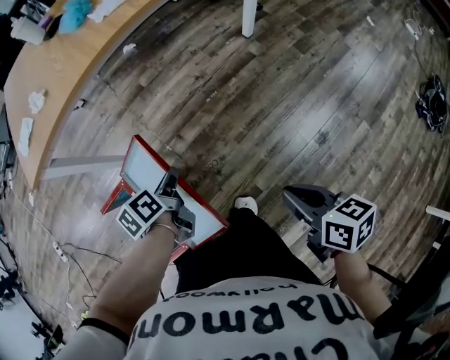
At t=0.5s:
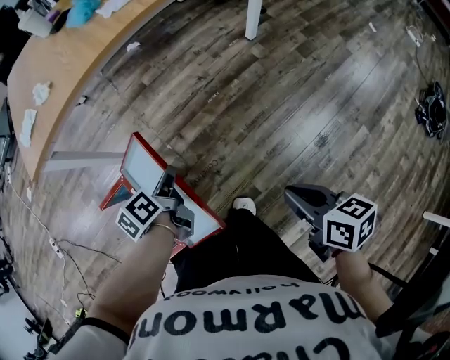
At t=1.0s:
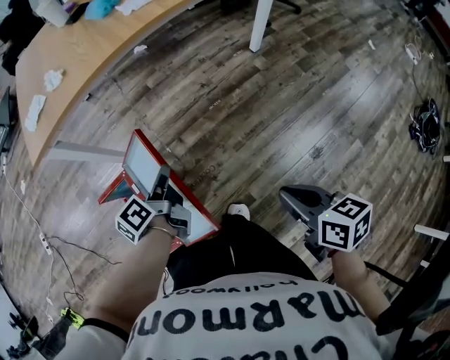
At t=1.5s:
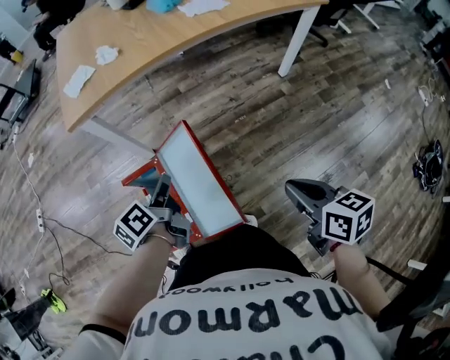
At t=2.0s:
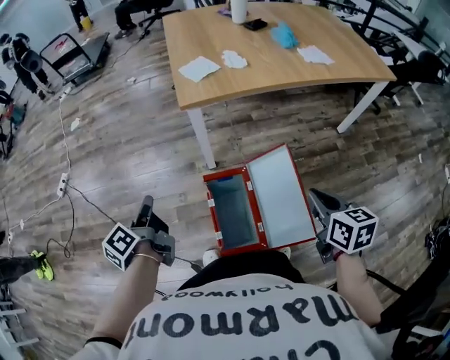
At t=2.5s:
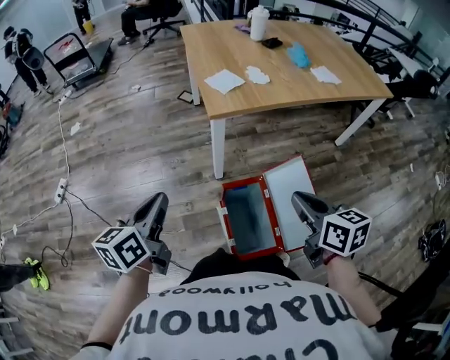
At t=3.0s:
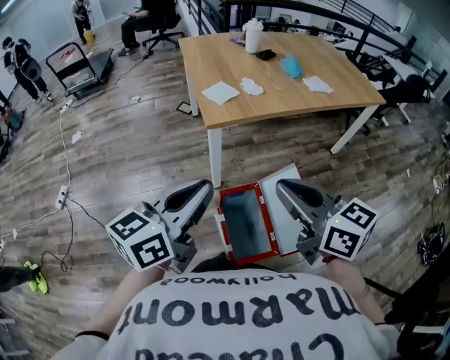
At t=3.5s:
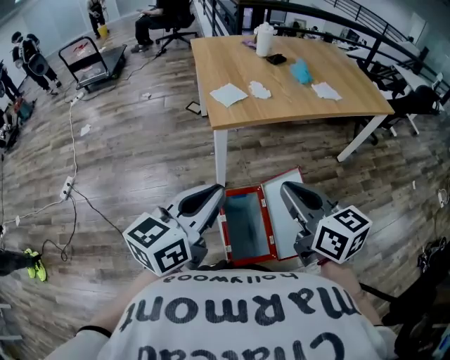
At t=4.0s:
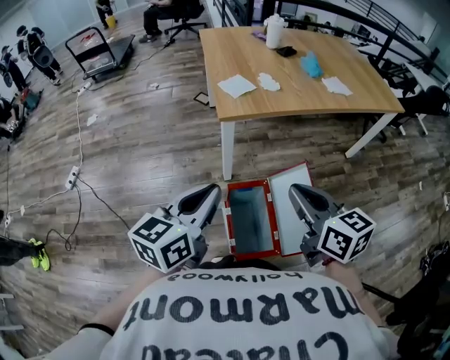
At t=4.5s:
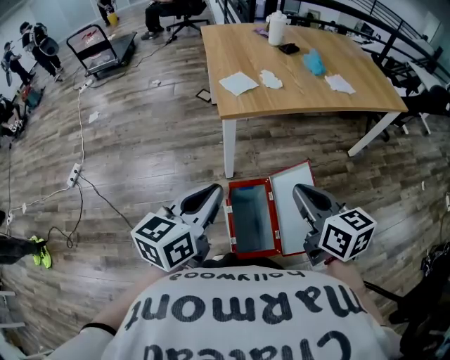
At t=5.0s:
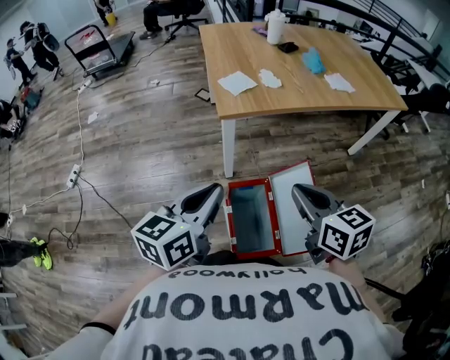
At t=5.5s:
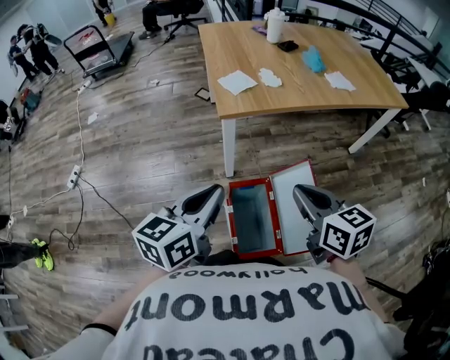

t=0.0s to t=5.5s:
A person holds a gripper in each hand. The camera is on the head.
t=0.0s to t=2.0s: The left gripper travels to the left by approximately 50 cm, and changes its angle by about 50 degrees, while the right gripper travels to the left by about 25 cm, and changes its angle by roughly 30 degrees.
t=2.0s to t=3.5s: The right gripper travels to the left and upward by some 25 cm, and changes its angle by about 20 degrees. The left gripper heads upward and to the right, covering roughly 25 cm, and changes its angle by some 70 degrees.
t=3.5s to t=5.5s: The grippers both shift downward by approximately 5 cm.

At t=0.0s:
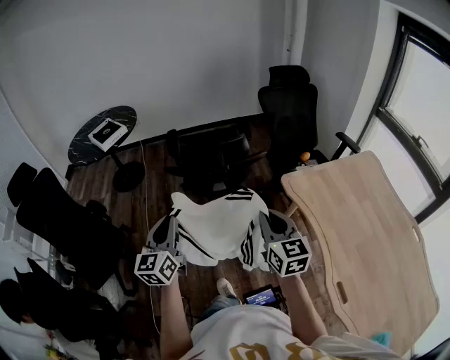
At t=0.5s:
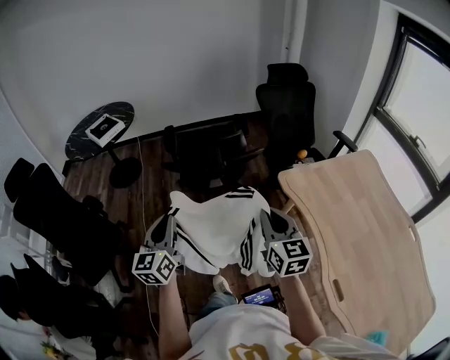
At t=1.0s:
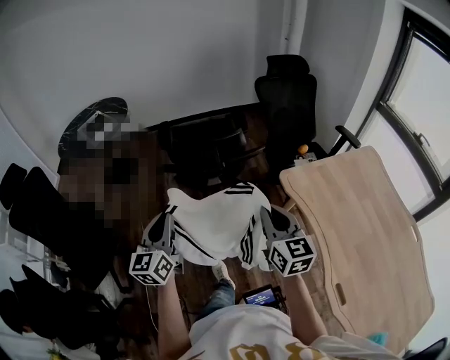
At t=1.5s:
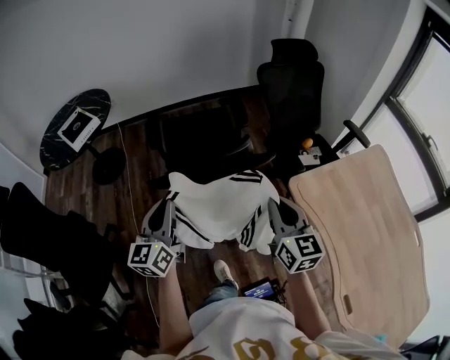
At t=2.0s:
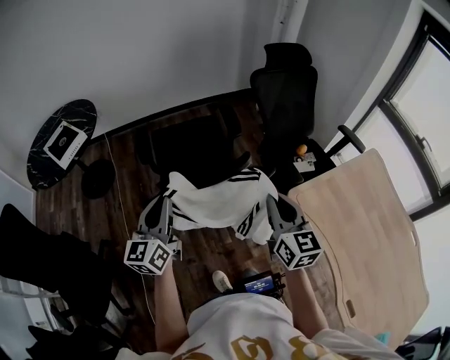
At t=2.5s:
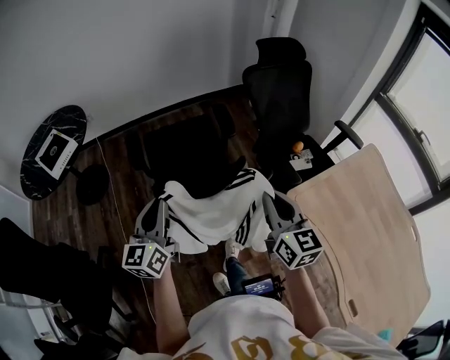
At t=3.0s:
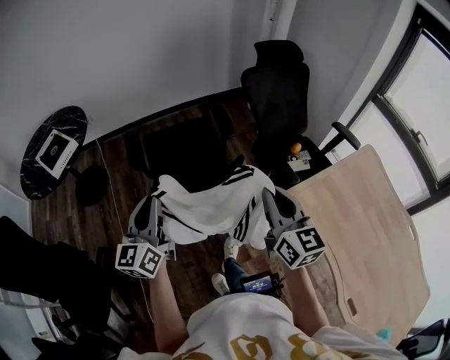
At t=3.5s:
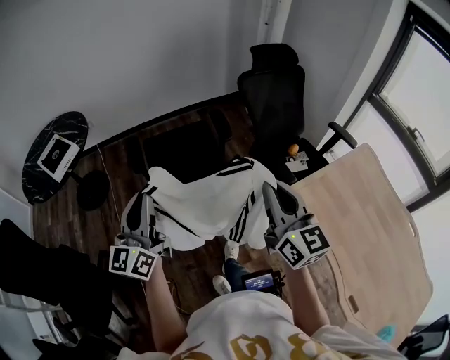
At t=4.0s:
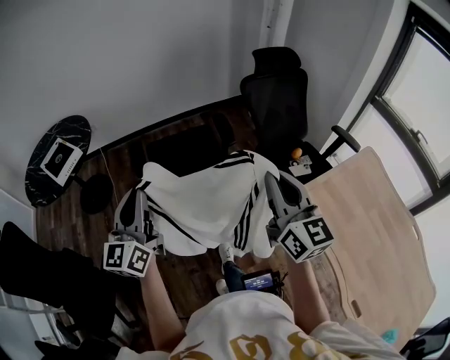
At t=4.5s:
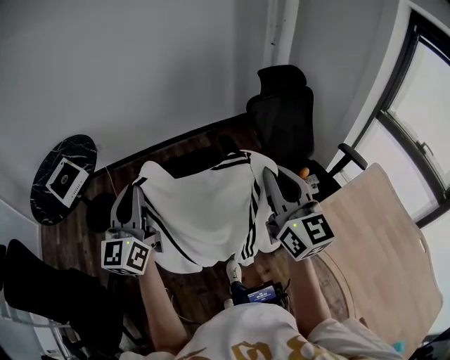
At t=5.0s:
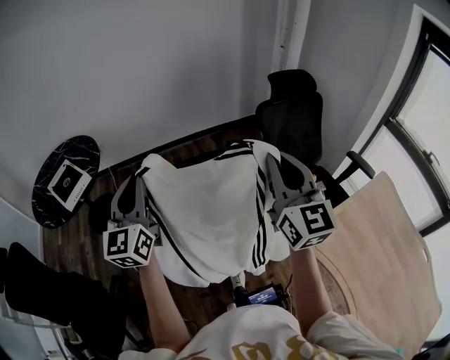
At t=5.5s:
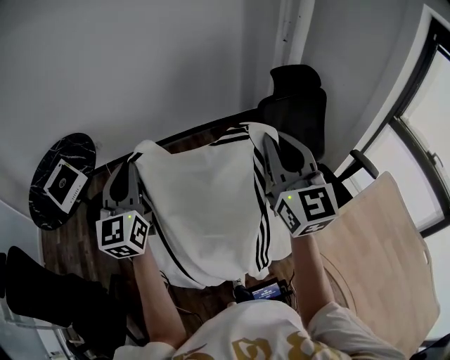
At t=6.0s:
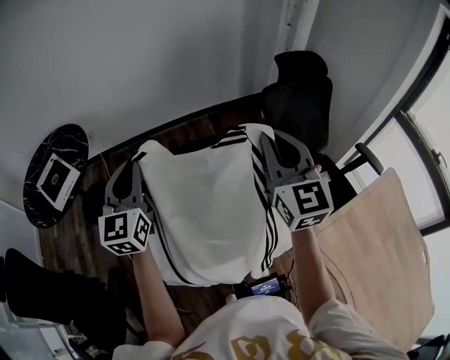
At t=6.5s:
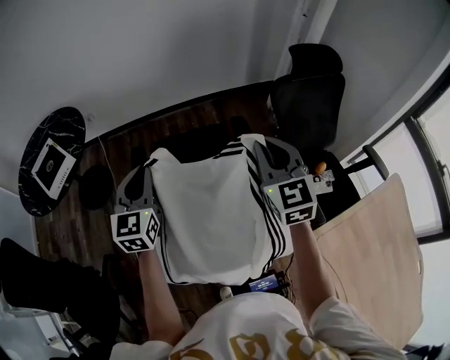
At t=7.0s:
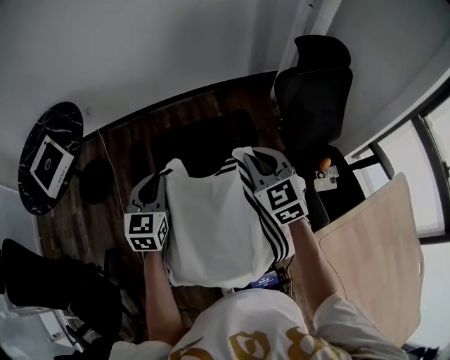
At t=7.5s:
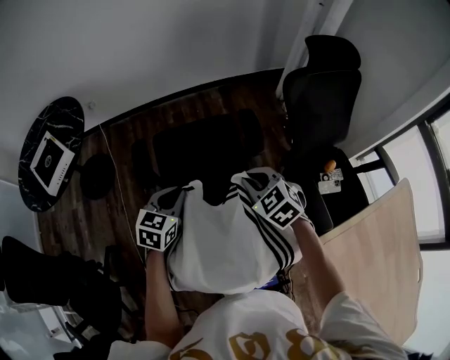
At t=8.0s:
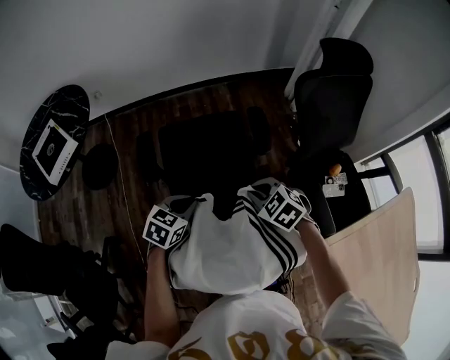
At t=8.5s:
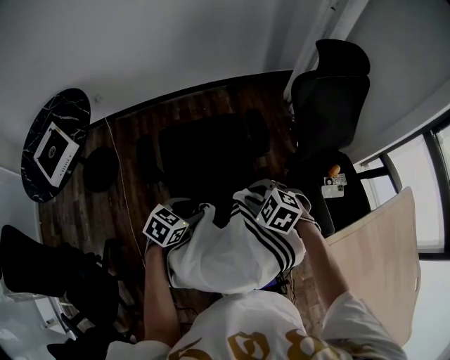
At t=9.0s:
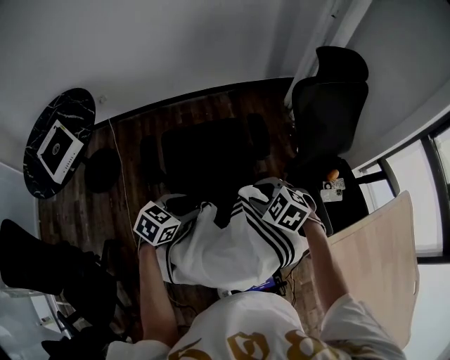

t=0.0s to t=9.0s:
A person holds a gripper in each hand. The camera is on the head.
t=0.0s to t=2.0s: The grippers both shift forward by approximately 30 cm.
t=2.0s to t=4.5s: Both grippers move upward and forward, roughly 20 cm. The right gripper turns by approximately 20 degrees.
t=4.5s to t=7.0s: The grippers both shift forward and downward by some 30 cm. The left gripper tips its fingers downward by approximately 30 degrees. Meanwhile the right gripper points its fingers roughly 30 degrees further downward.
t=7.0s to t=9.0s: Both grippers move downward and backward, roughly 15 cm. The right gripper tips its fingers downward by some 30 degrees, and opens its fingers, while the left gripper swivels about 40 degrees, and opens.

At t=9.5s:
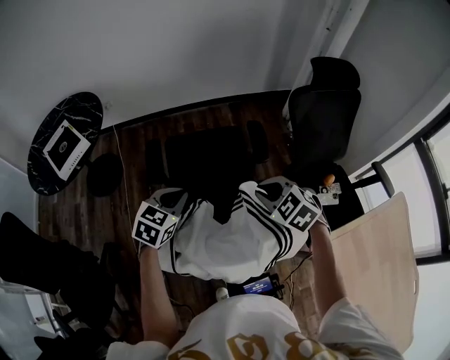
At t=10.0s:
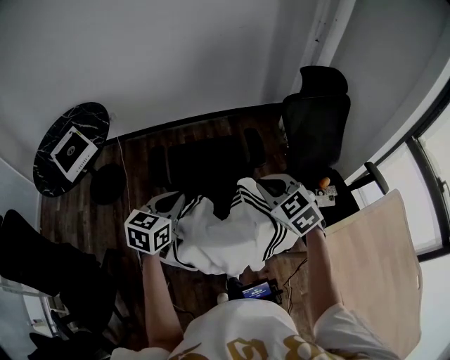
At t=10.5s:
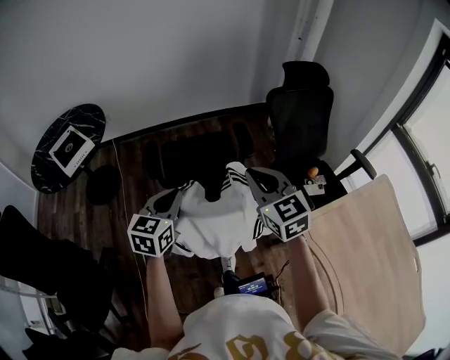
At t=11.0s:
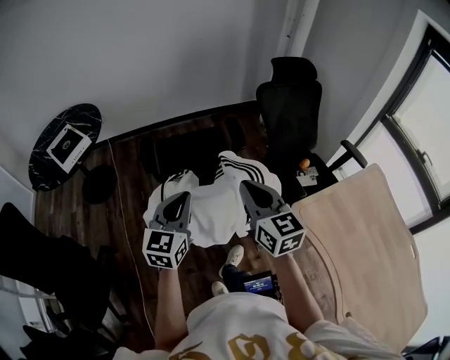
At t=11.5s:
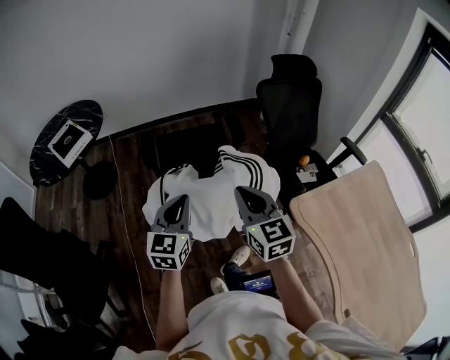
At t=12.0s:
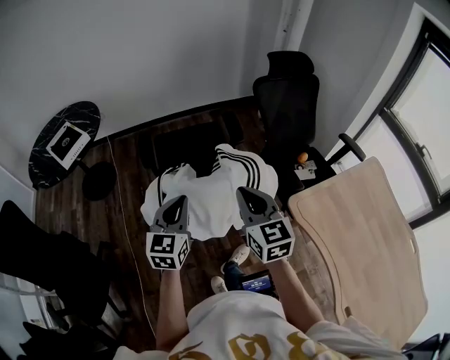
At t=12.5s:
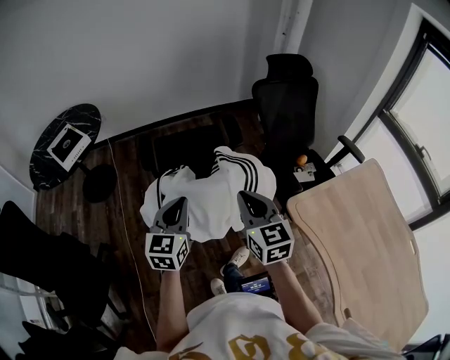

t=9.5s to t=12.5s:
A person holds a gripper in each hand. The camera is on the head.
t=9.5s to t=11.0s: The grippers both shift backward and upward by some 25 cm. The left gripper changes its angle by approximately 30 degrees, while the right gripper angles its fingers upward, by approximately 40 degrees.
t=11.0s to t=12.5s: The right gripper shifts by approximately 5 cm.

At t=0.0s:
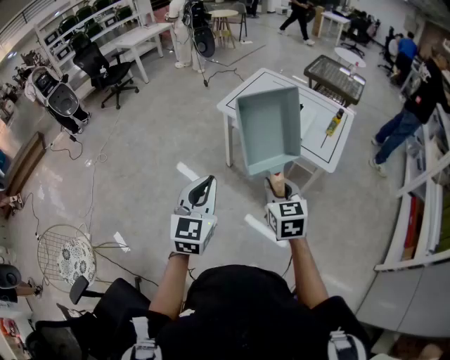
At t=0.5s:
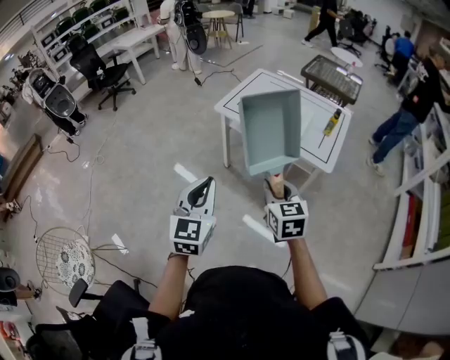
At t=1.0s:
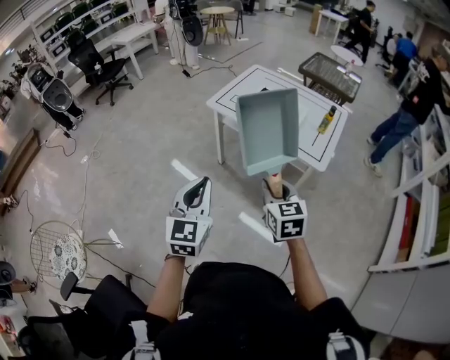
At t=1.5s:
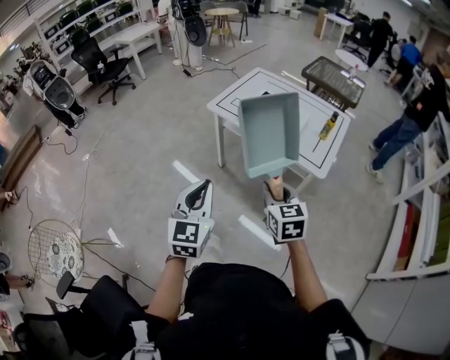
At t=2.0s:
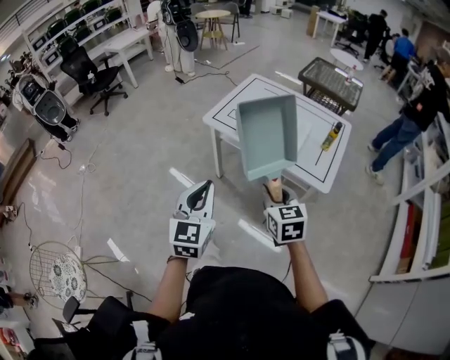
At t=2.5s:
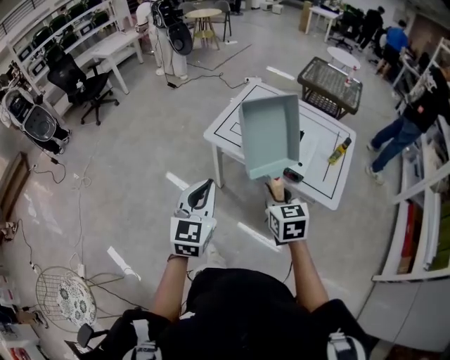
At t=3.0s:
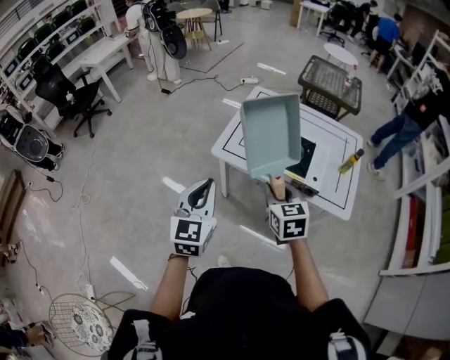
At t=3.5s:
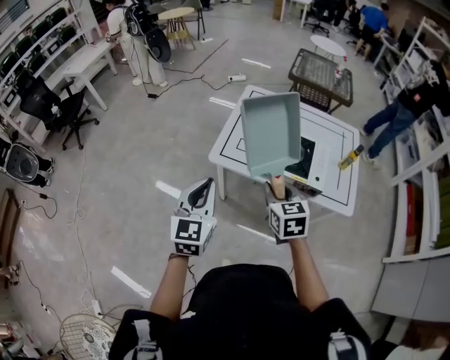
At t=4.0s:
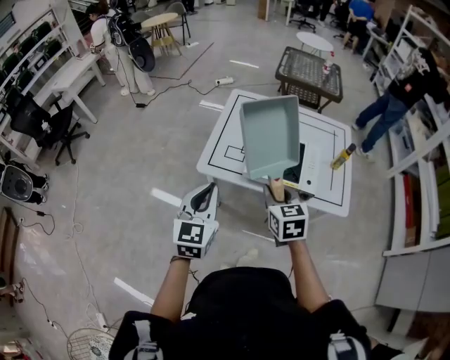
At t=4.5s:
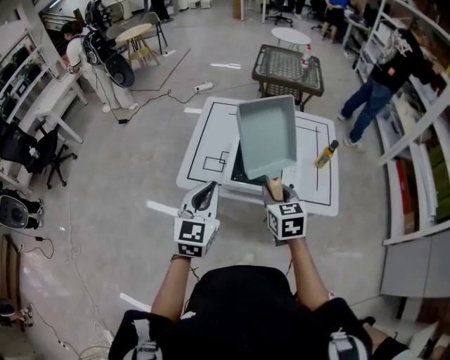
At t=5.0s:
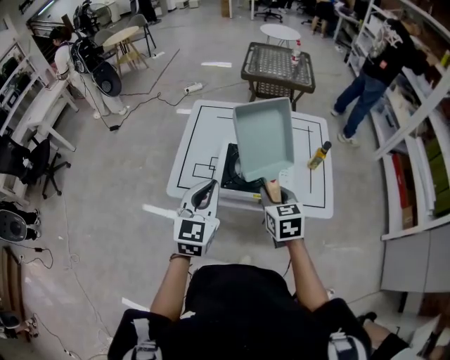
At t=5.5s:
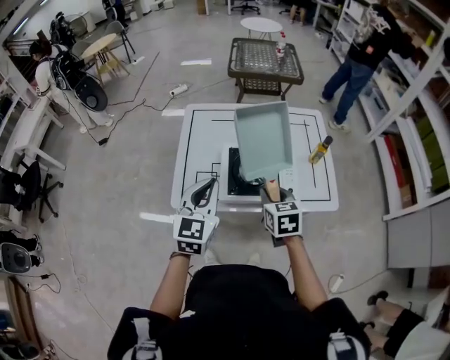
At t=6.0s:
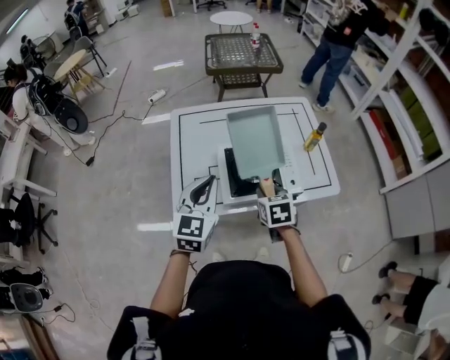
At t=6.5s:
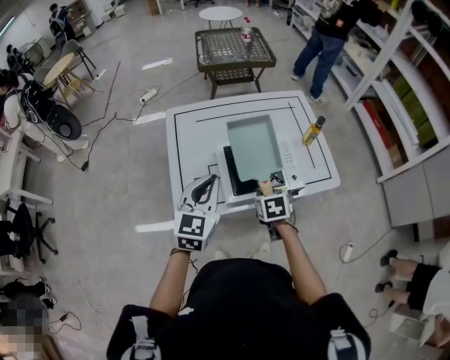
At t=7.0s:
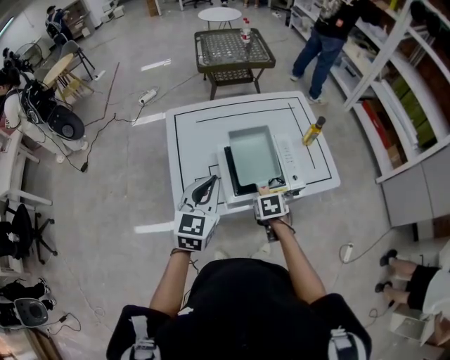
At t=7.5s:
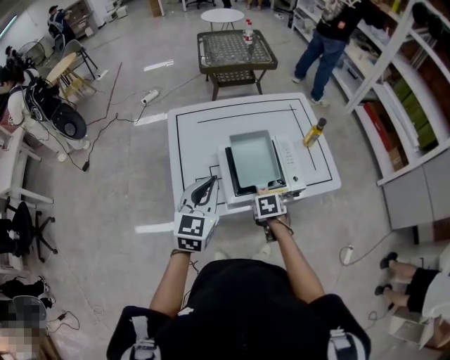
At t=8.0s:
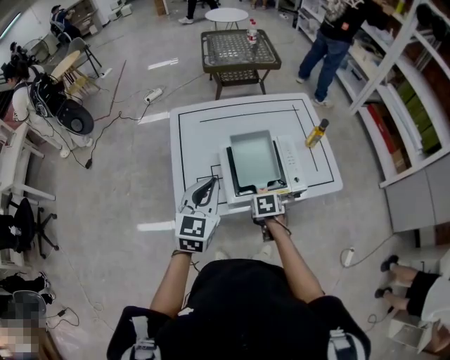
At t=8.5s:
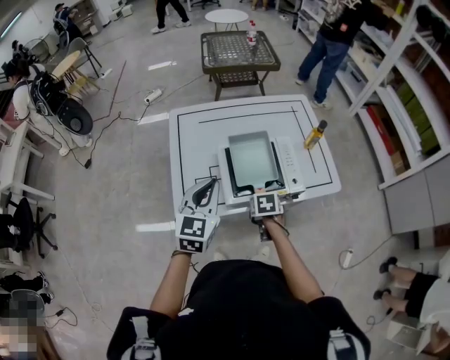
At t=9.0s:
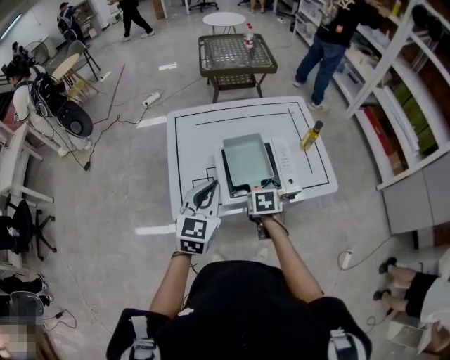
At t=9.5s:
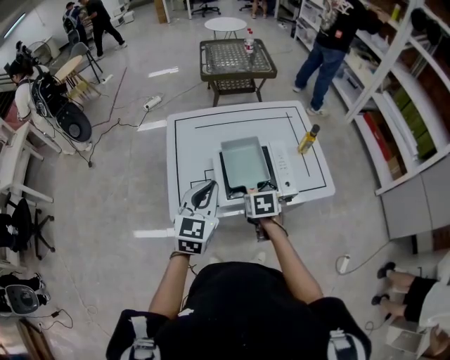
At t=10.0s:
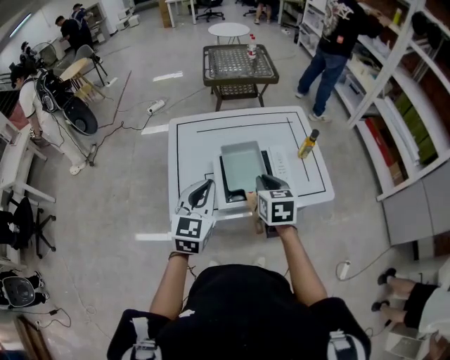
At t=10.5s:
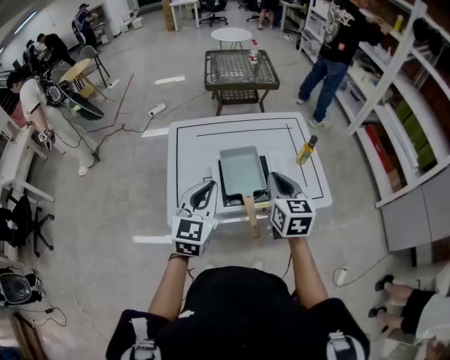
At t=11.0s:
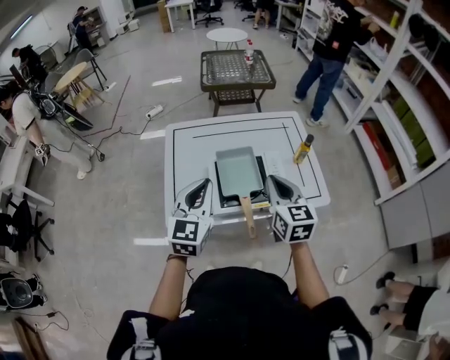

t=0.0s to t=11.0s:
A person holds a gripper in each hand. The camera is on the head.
t=0.0s to t=2.0s: Both grippers travel together forward, approximately 10 cm.
t=2.0s to t=3.5s: The grippers both shift forward and to the left by approximately 30 cm.
t=3.5s to t=5.5s: The left gripper moves forward and to the right, approximately 25 cm, and changes its angle by some 20 degrees, while the right gripper goes about 20 cm forward, to the right and downward, and changes its angle by approximately 20 degrees.
t=5.5s to t=7.5s: The left gripper moves about 5 cm; the right gripper travels downward by about 15 cm, and points its fingers approximately 30 degrees further downward.
t=7.5s to t=9.0s: The right gripper shifts by approximately 5 cm, and opens its fingers.
t=9.0s to t=11.0s: The left gripper goes about 5 cm upward. Meanwhile the right gripper moves upward, some 25 cm, angles its fingers upward, by some 40 degrees, and closes its fingers.
